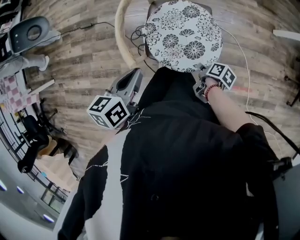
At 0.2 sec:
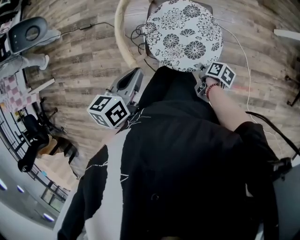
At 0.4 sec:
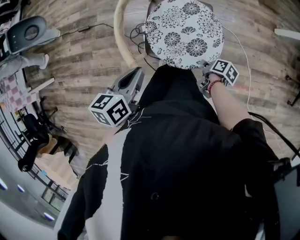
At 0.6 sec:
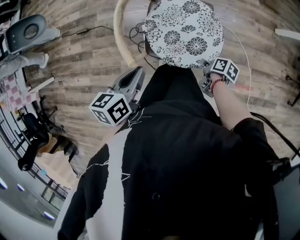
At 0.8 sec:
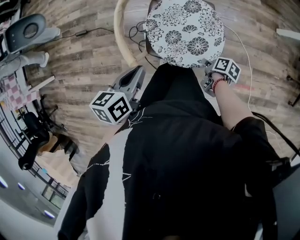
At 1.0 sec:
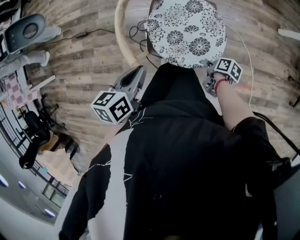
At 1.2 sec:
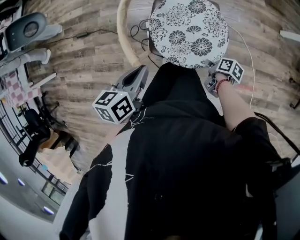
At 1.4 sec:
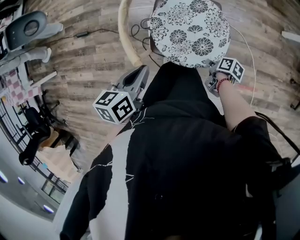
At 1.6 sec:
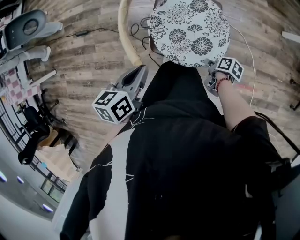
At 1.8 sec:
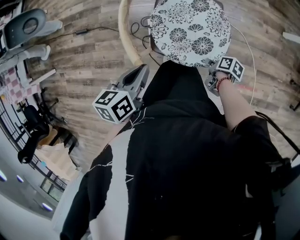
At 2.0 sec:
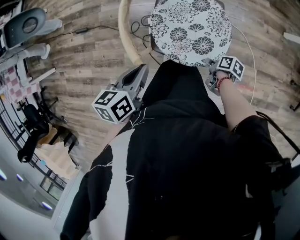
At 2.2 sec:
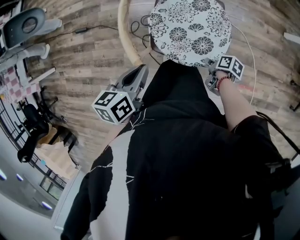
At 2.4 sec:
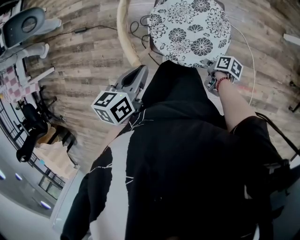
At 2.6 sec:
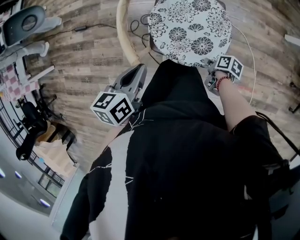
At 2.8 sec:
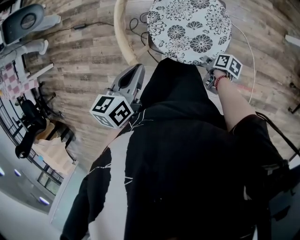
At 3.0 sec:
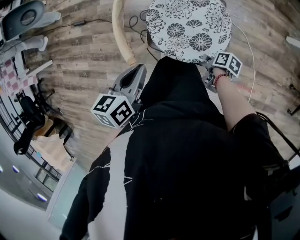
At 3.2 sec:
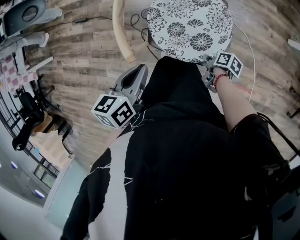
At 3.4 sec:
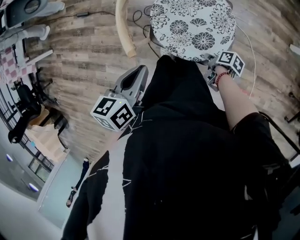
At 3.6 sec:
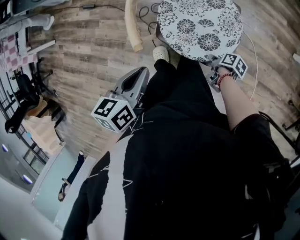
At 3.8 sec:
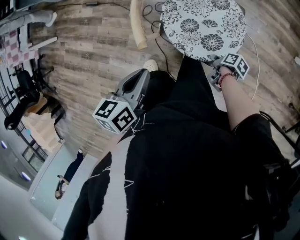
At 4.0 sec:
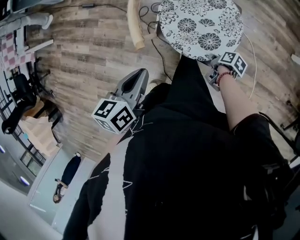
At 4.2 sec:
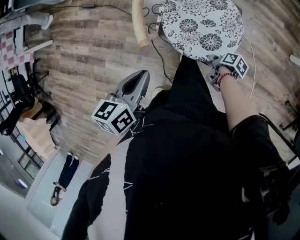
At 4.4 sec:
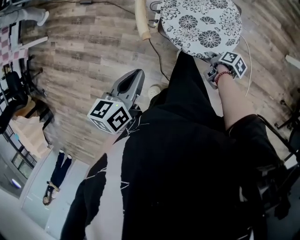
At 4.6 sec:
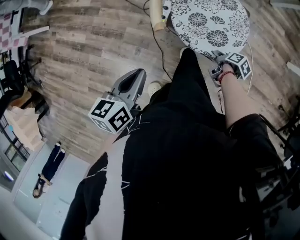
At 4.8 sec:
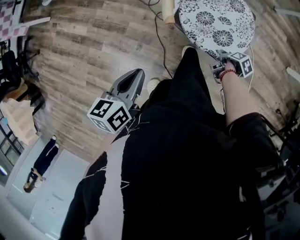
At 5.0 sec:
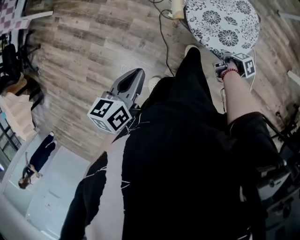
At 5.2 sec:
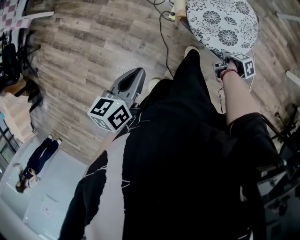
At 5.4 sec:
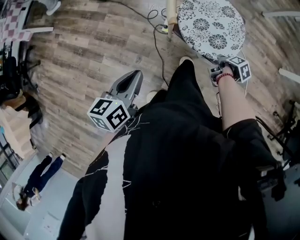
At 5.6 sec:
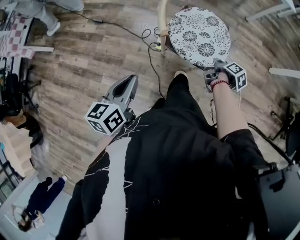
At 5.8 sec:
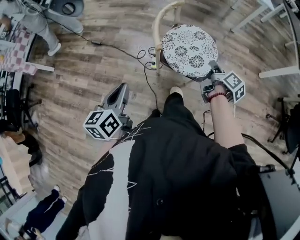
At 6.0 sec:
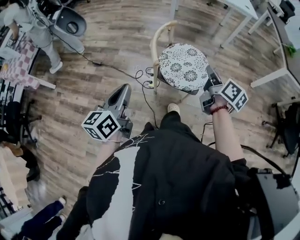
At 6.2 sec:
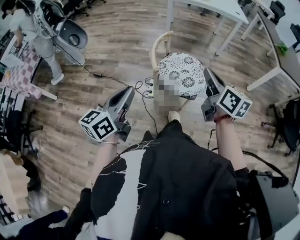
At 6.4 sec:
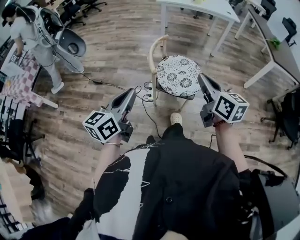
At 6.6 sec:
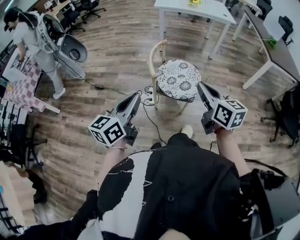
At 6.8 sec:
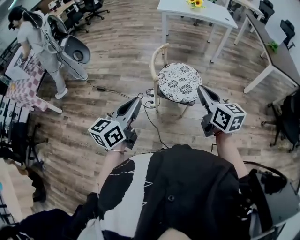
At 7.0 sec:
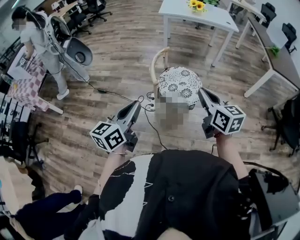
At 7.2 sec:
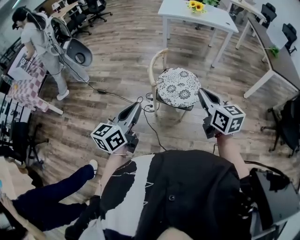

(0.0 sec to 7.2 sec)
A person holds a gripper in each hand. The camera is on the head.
2.8 sec - 4.4 sec: The left gripper moves some 10 cm.
4.4 sec - 5.8 sec: The left gripper ends up roughly 20 cm from where it was, and turns by roughly 20 degrees.
5.8 sec - 7.2 sec: The left gripper travels upward by roughly 15 cm, and turns by some 20 degrees.

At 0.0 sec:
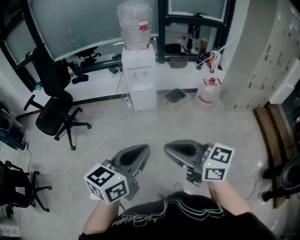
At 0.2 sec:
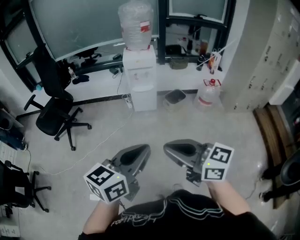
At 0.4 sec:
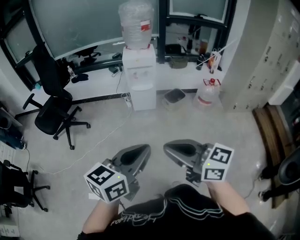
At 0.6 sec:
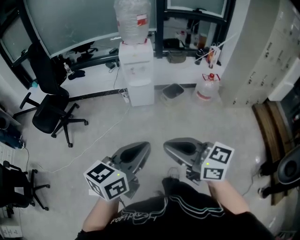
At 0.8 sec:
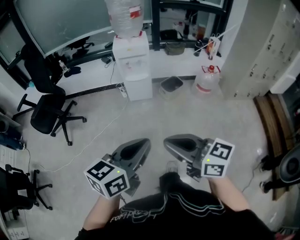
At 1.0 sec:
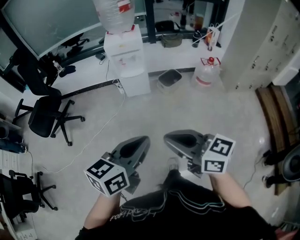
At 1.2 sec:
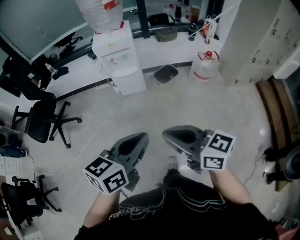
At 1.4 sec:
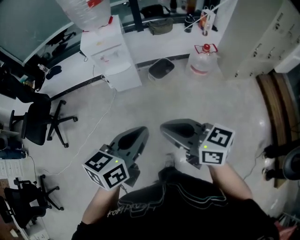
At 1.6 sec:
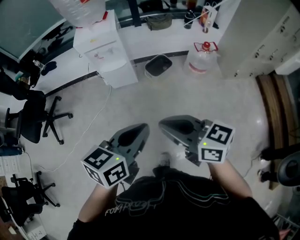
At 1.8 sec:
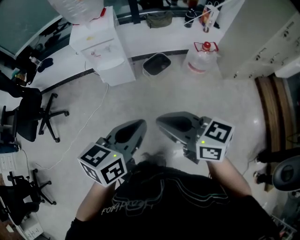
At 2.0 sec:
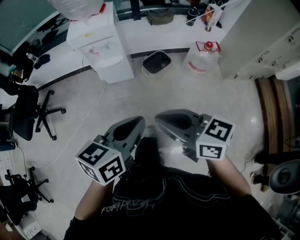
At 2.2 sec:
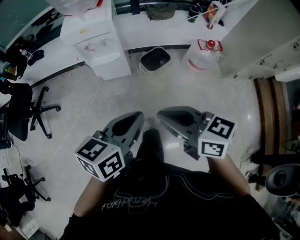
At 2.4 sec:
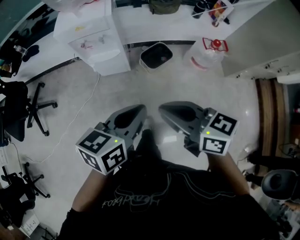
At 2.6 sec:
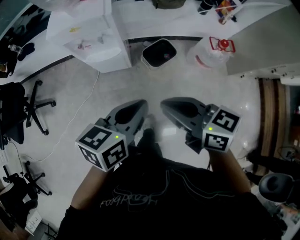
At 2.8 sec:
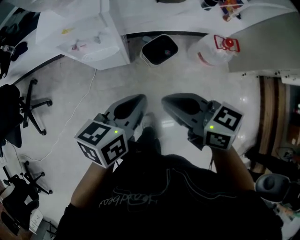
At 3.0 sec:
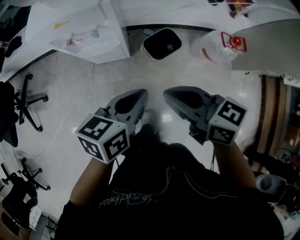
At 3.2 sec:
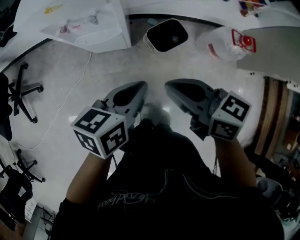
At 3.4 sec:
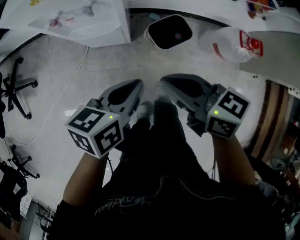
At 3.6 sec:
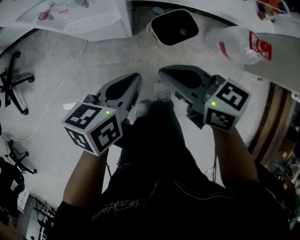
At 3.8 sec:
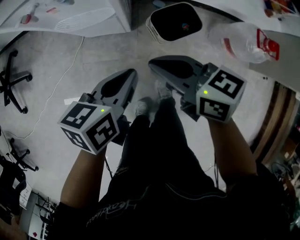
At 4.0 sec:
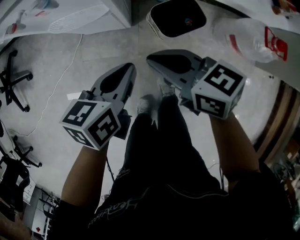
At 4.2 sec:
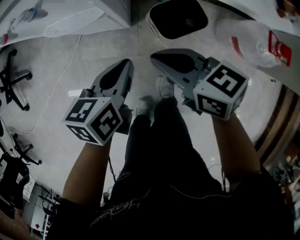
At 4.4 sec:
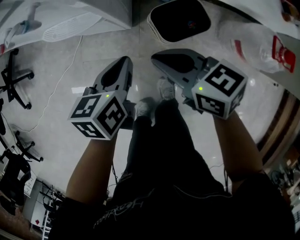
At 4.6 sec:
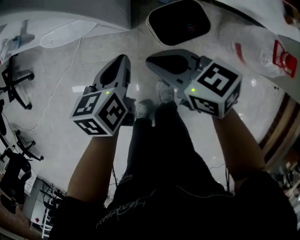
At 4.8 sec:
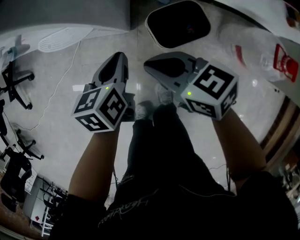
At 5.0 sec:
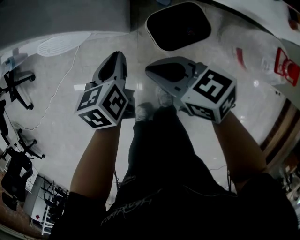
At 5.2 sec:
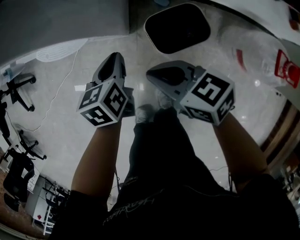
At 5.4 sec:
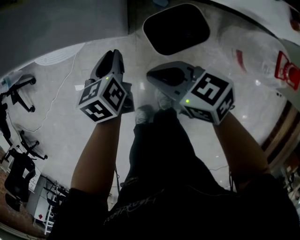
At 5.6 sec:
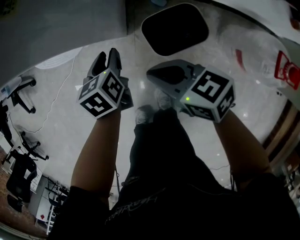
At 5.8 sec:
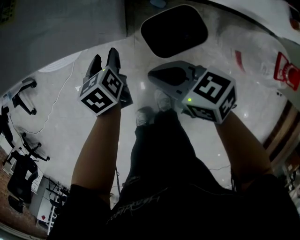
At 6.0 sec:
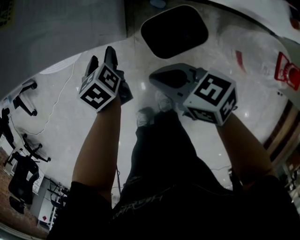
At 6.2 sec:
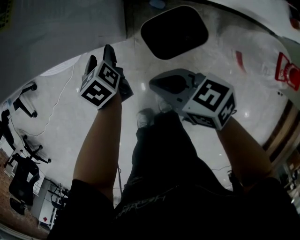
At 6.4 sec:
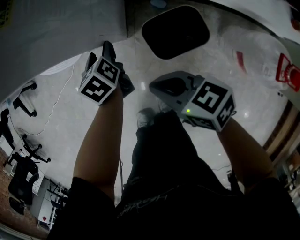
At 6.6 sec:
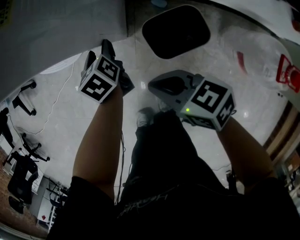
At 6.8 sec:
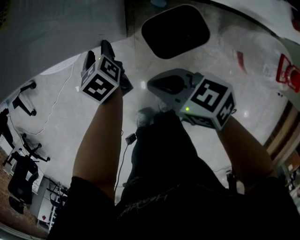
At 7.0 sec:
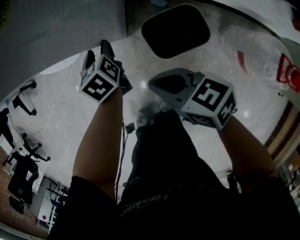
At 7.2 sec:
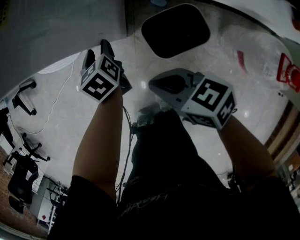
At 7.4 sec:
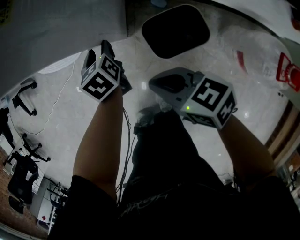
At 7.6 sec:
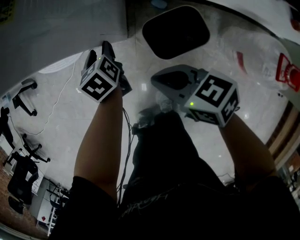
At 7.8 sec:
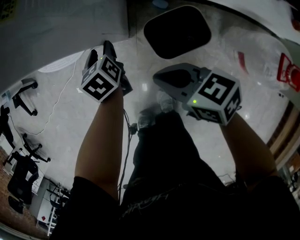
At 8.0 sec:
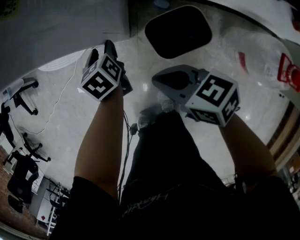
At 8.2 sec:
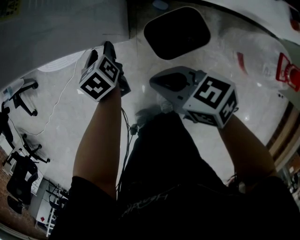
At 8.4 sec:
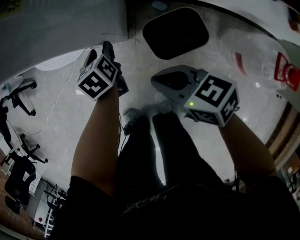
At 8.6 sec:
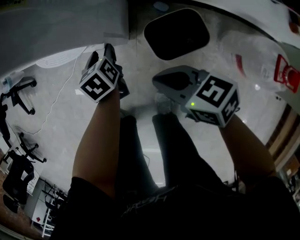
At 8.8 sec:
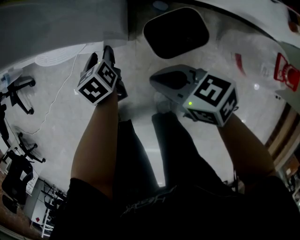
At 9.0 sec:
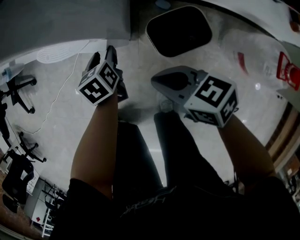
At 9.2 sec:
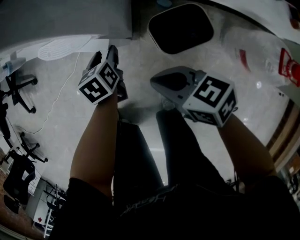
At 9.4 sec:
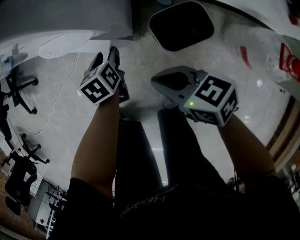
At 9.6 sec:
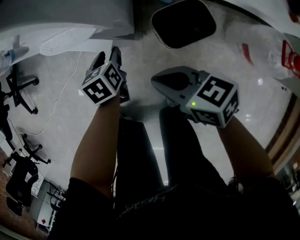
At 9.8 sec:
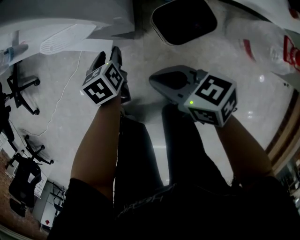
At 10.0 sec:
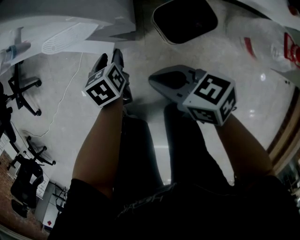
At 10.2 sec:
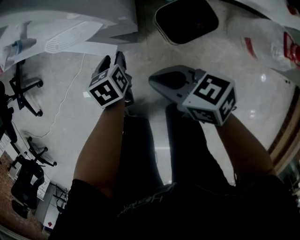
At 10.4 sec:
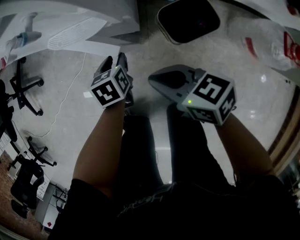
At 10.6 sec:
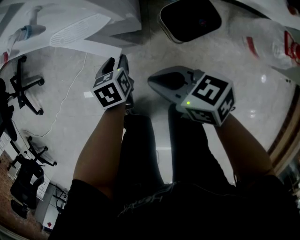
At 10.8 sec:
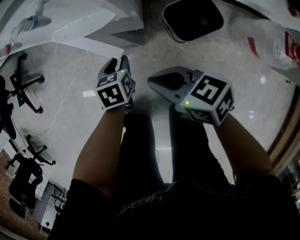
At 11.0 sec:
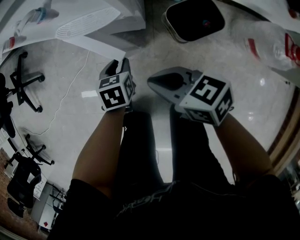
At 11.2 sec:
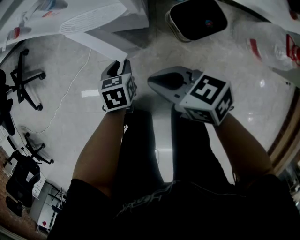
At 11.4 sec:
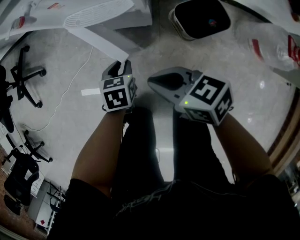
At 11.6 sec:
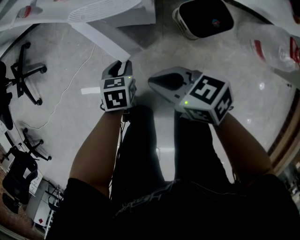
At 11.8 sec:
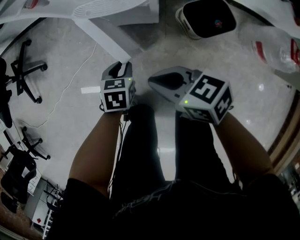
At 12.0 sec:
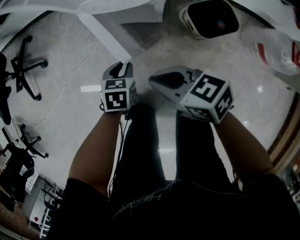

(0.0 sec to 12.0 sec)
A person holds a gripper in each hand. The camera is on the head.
0.0 sec - 1.6 sec: The two grippers go approximately 35 cm forward and to the right.
1.6 sec - 3.0 sec: The grippers both shift forward and downward by roughly 40 cm.
3.0 sec - 4.4 sec: The grippers both shift downward and forward by approximately 30 cm. The left gripper changes its angle by some 30 degrees.
4.4 sec - 6.0 sec: The left gripper travels downward by approximately 15 cm, rotates about 30 degrees, and opens its fingers. The right gripper shifts roughly 5 cm downward.
6.0 sec - 9.0 sec: The grippers stay close to where they were, moving slightly.
9.0 sec - 10.4 sec: The two grippers go roughly 5 cm to the left.
10.4 sec - 12.0 sec: The grippers both shift to the left by about 15 cm.

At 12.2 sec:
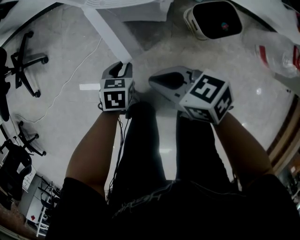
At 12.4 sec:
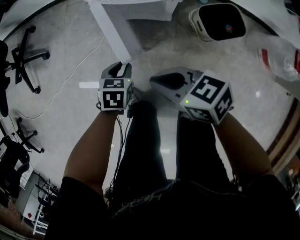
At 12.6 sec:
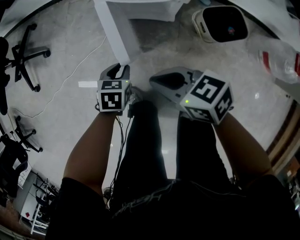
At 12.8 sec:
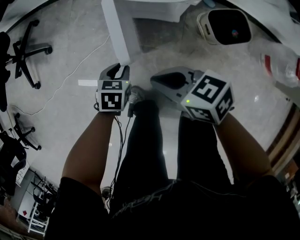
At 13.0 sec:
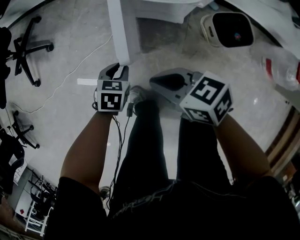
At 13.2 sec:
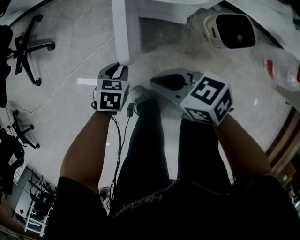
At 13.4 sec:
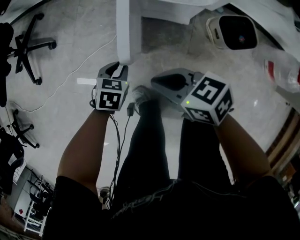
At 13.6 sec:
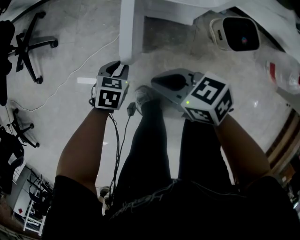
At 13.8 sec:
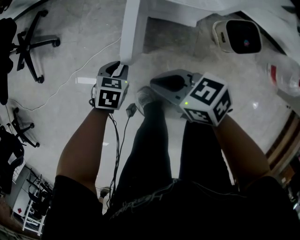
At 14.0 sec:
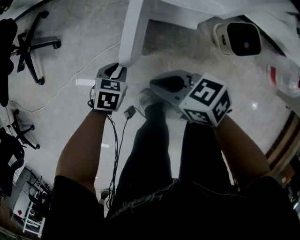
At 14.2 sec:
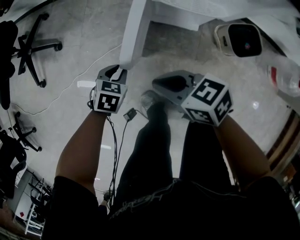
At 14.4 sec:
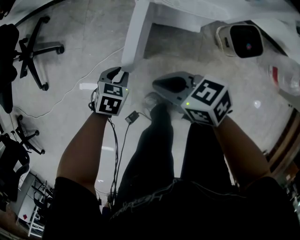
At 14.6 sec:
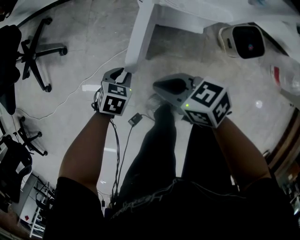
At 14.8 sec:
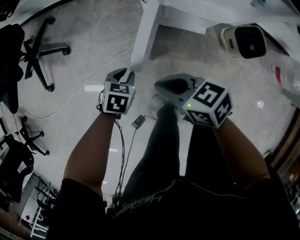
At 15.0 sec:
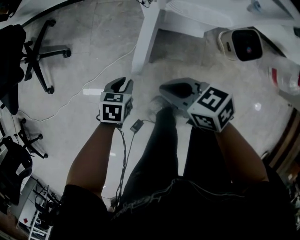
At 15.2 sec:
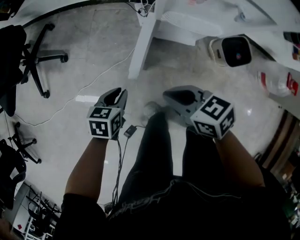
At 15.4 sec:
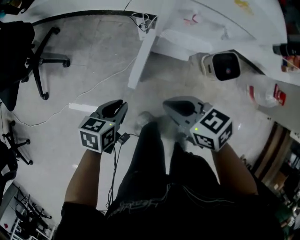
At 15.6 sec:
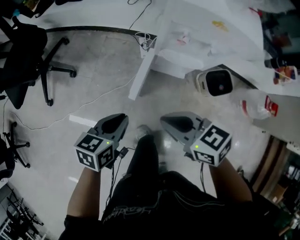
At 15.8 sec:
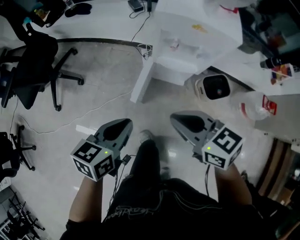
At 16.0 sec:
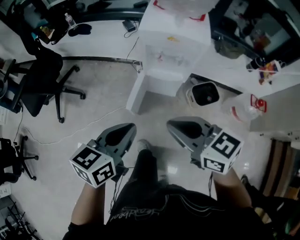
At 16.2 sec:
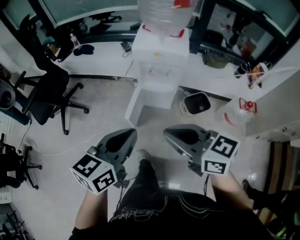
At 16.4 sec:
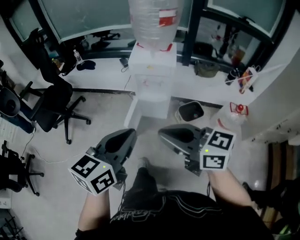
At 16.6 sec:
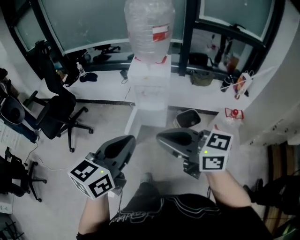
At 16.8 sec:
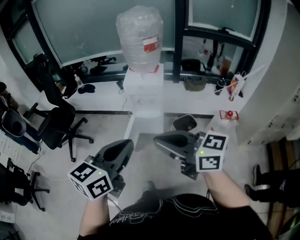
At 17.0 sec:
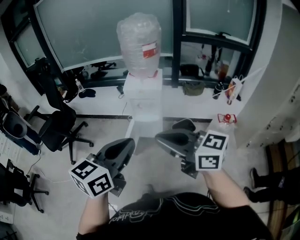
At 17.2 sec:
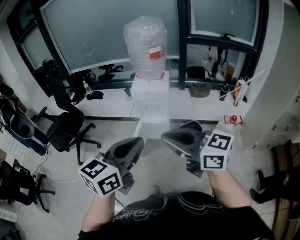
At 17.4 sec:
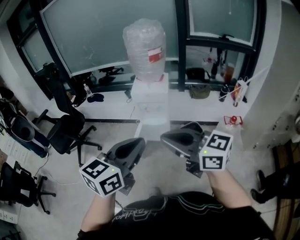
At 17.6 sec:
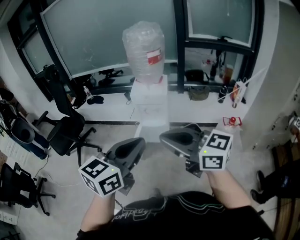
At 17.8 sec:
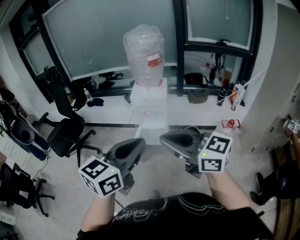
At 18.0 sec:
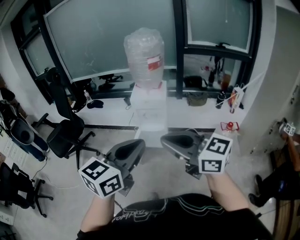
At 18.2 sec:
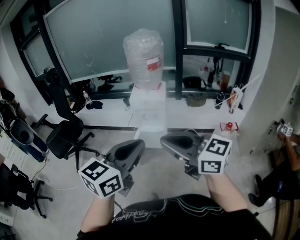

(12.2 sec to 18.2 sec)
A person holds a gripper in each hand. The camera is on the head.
12.2 sec - 13.8 sec: The two grippers go some 15 cm to the left and forward.
13.8 sec - 15.2 sec: The left gripper is displaced upward and to the left by roughly 10 cm; the right gripper ends up some 5 cm from where it was.
15.2 sec - 16.6 sec: The grippers both shift upward and backward by about 70 cm. The right gripper tilts its fingers about 30 degrees upward. Meanwhile the left gripper angles its fingers upward, by about 40 degrees.
16.6 sec - 18.2 sec: Both grippers move upward and backward, about 10 cm.
